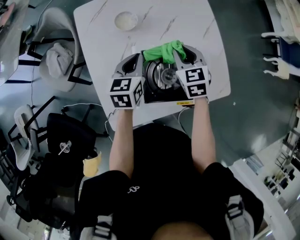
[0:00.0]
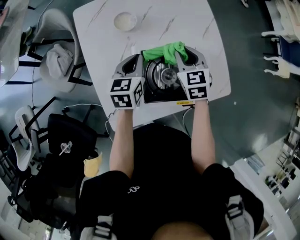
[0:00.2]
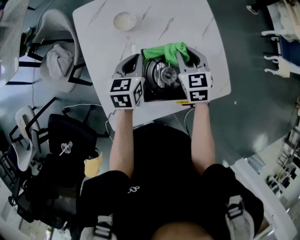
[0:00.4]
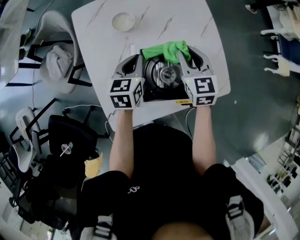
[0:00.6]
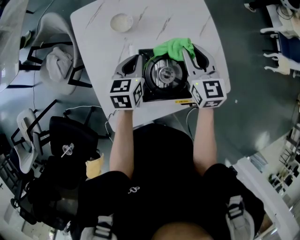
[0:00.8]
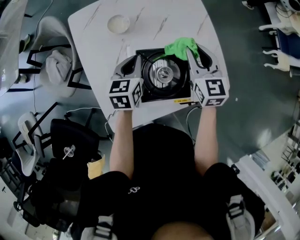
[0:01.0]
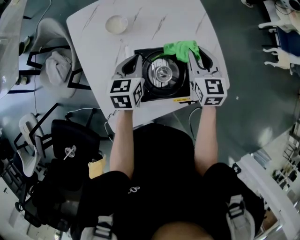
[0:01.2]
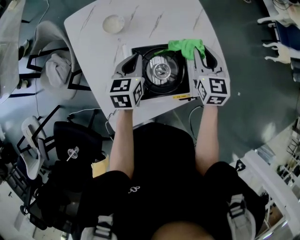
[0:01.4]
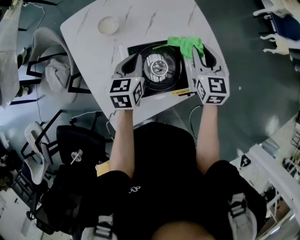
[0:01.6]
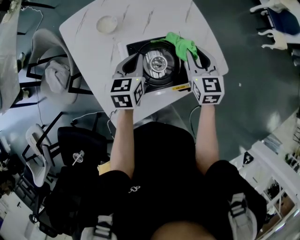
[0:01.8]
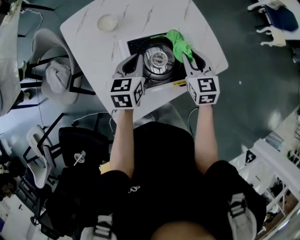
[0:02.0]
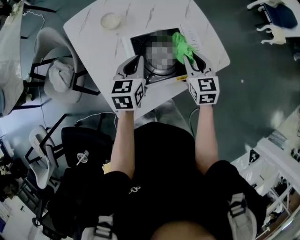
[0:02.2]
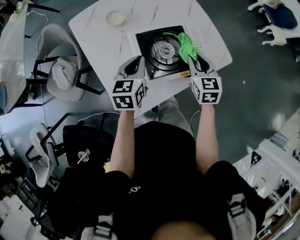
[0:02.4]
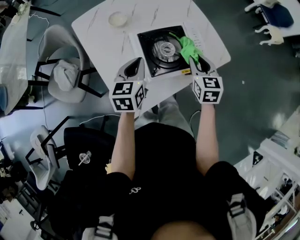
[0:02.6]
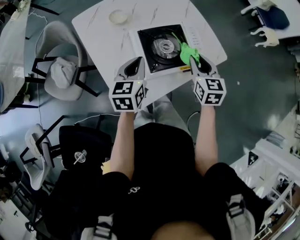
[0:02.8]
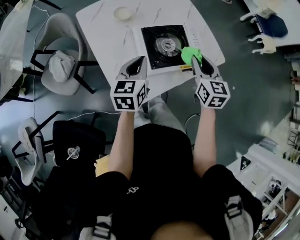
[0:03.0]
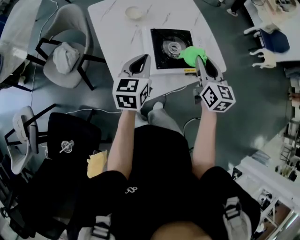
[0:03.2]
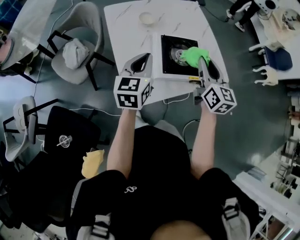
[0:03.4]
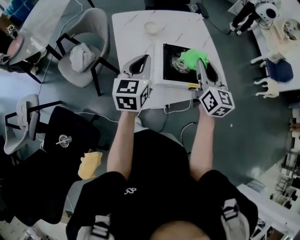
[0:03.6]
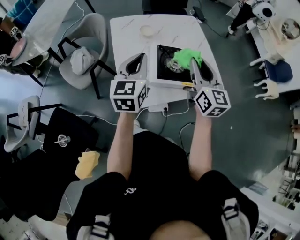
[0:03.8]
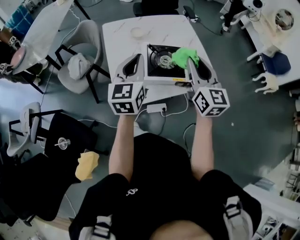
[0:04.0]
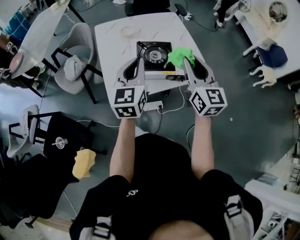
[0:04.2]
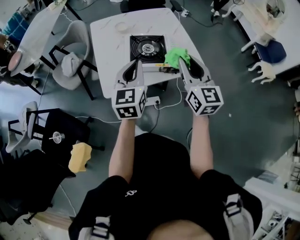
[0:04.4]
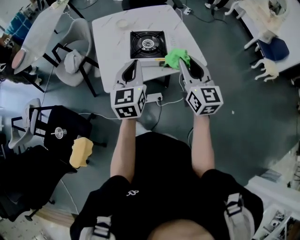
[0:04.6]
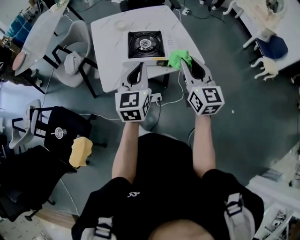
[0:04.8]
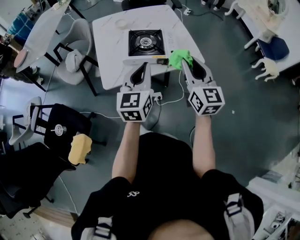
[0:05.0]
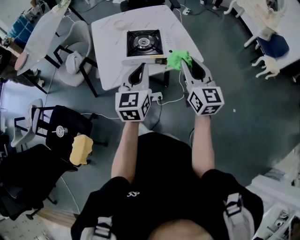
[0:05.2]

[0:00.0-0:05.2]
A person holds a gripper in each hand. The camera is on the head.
0:00.0 to 0:01.8: The right gripper moves to the right and backward, roughly 15 cm, and changes its angle by approximately 20 degrees; the left gripper travels to the right by some 5 cm.
0:01.8 to 0:03.4: Both grippers travel together backward, upward and to the left, approximately 20 cm. The right gripper swivels about 20 degrees.
0:03.4 to 0:05.2: The grippers both shift backward and to the right by approximately 30 cm.

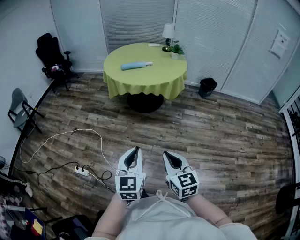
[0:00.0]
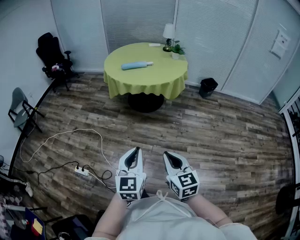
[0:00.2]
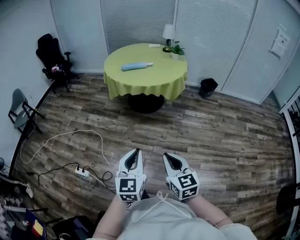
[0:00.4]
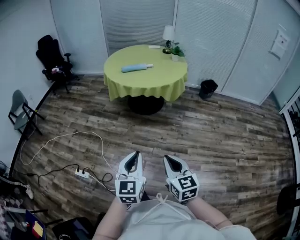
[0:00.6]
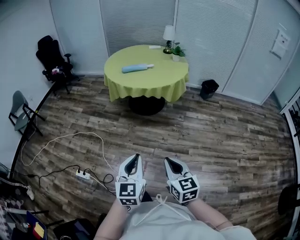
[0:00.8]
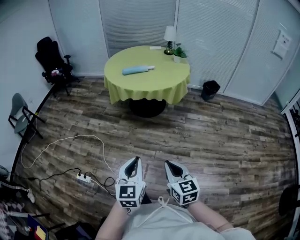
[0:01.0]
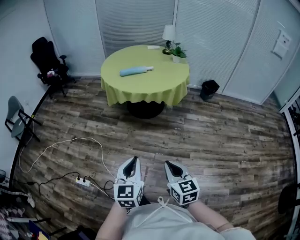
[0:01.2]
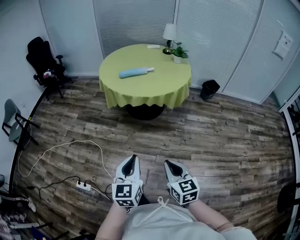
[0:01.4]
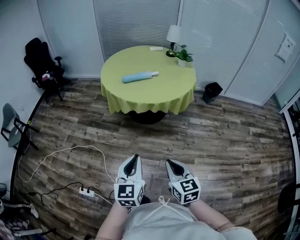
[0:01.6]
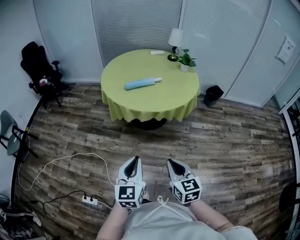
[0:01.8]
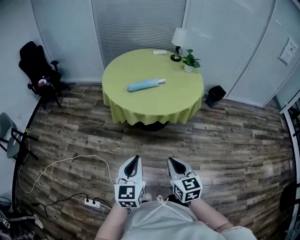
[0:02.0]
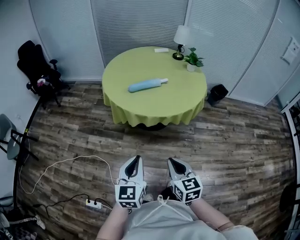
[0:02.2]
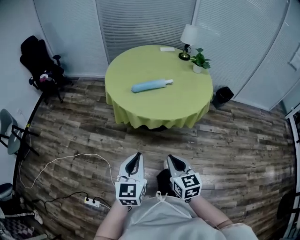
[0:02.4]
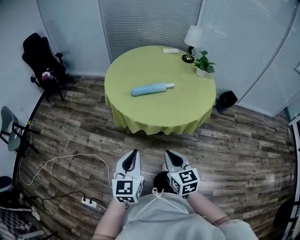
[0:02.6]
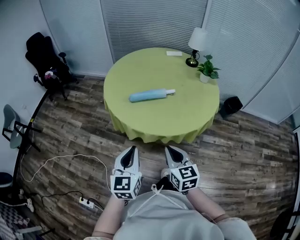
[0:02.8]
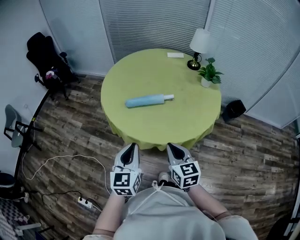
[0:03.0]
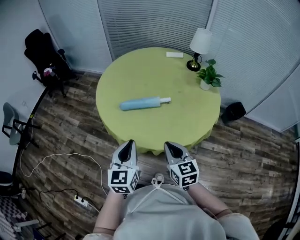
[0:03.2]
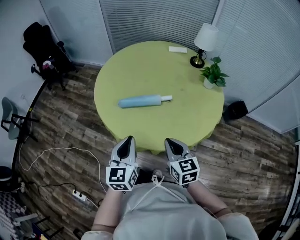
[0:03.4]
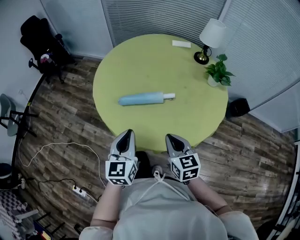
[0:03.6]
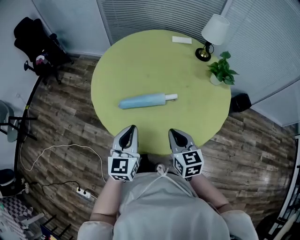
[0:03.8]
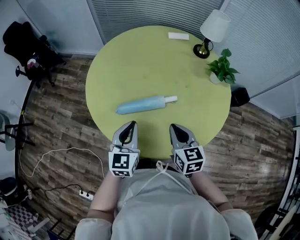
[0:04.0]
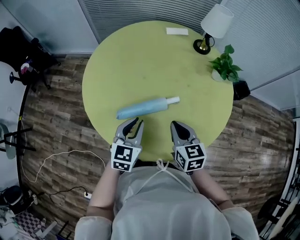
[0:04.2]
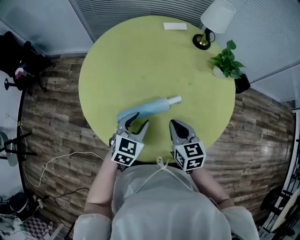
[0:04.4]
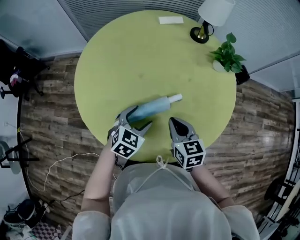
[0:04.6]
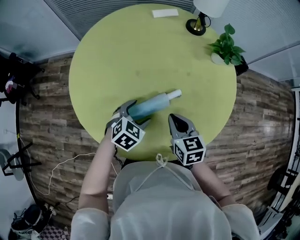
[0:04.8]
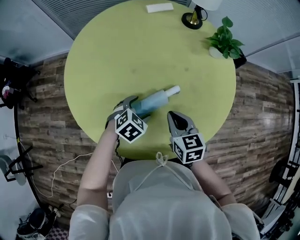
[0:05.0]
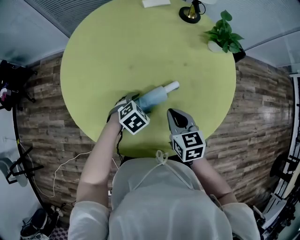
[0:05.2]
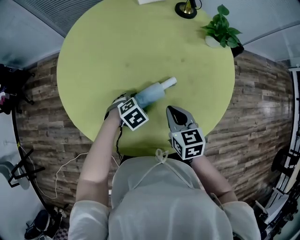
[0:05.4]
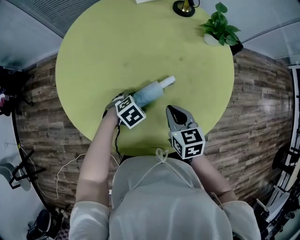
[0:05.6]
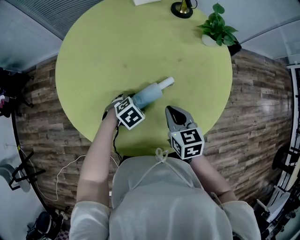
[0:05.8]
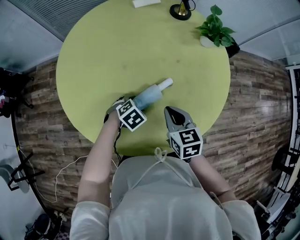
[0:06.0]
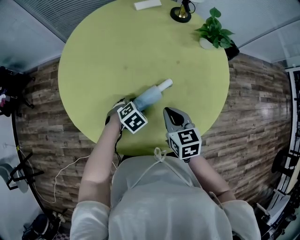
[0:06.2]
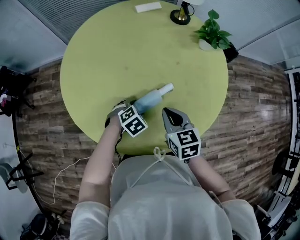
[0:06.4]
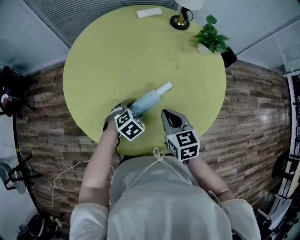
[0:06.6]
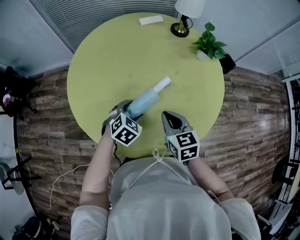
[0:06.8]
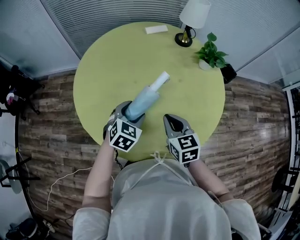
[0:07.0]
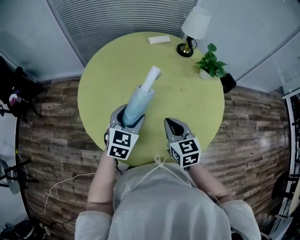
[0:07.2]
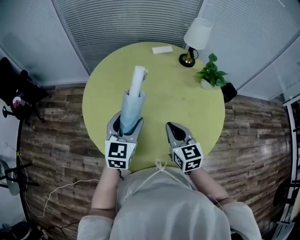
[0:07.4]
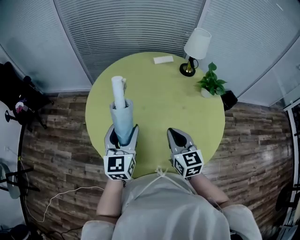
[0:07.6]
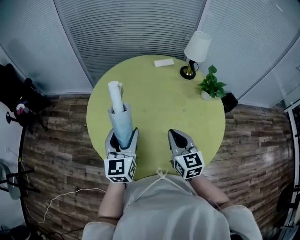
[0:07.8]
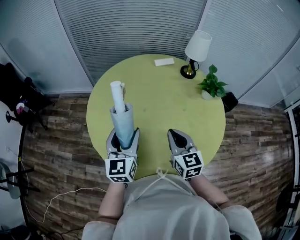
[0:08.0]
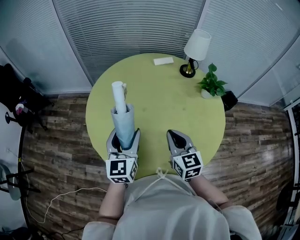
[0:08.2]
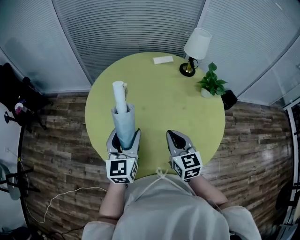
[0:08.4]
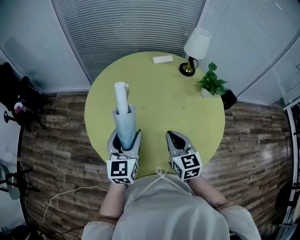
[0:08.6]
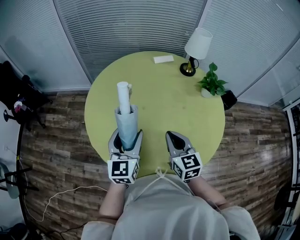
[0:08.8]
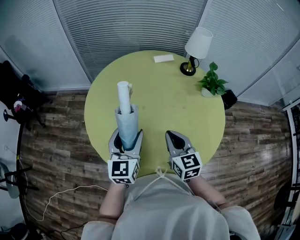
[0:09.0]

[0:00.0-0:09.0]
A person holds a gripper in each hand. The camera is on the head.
0:00.0 to 0:01.6: Both grippers move forward, approximately 25 cm.
0:01.6 to 0:03.0: Both grippers are carried forward, about 40 cm.
0:03.0 to 0:04.4: The two grippers go approximately 35 cm forward. The left gripper rotates some 40 degrees, and opens.
0:04.4 to 0:06.0: The left gripper moves downward, about 15 cm, tips its fingers downward by approximately 40 degrees, and opens. Meanwhile the right gripper travels downward by some 5 cm.
0:06.0 to 0:07.6: The left gripper is displaced upward by some 30 cm, and tips its fingers upward by some 60 degrees, while the right gripper is displaced upward by approximately 15 cm, and swivels about 20 degrees.
0:07.6 to 0:09.0: There are only small adjustments of the grippers.

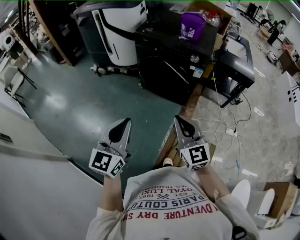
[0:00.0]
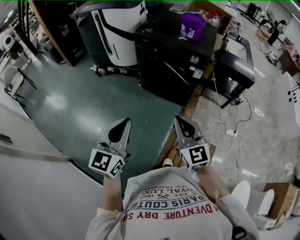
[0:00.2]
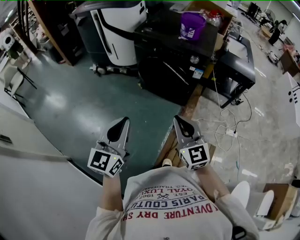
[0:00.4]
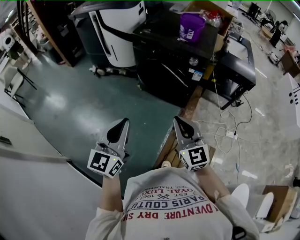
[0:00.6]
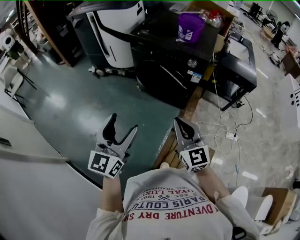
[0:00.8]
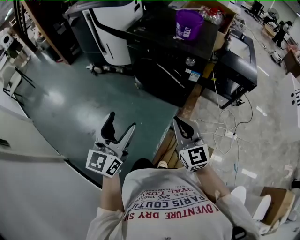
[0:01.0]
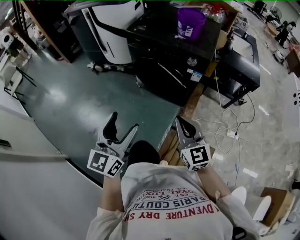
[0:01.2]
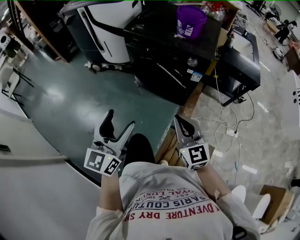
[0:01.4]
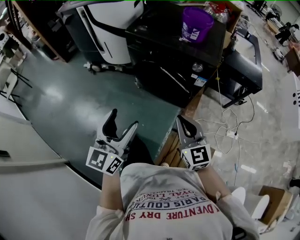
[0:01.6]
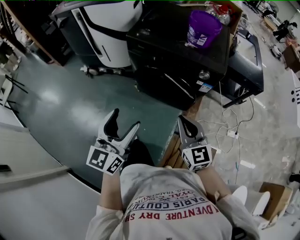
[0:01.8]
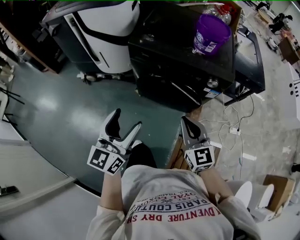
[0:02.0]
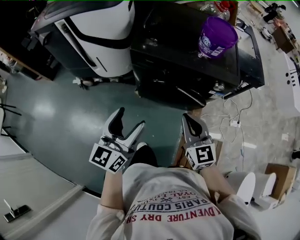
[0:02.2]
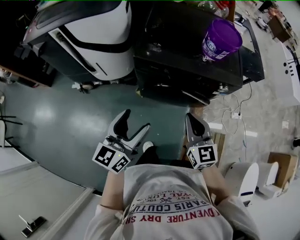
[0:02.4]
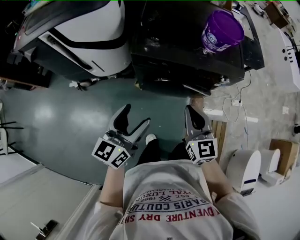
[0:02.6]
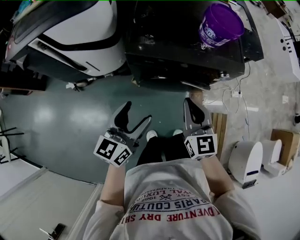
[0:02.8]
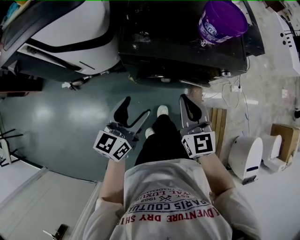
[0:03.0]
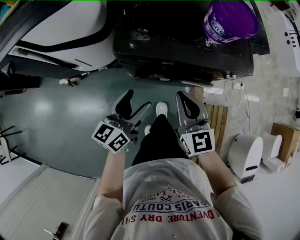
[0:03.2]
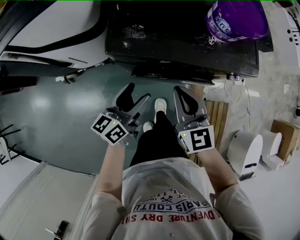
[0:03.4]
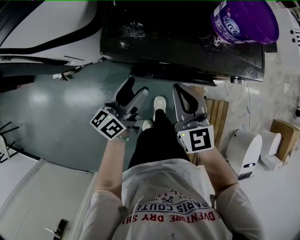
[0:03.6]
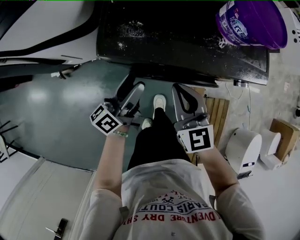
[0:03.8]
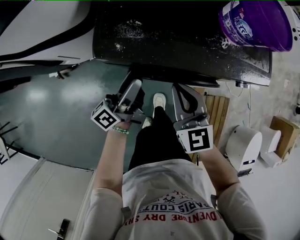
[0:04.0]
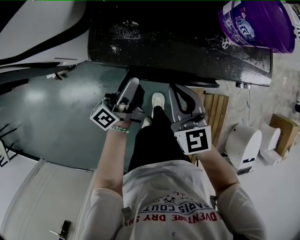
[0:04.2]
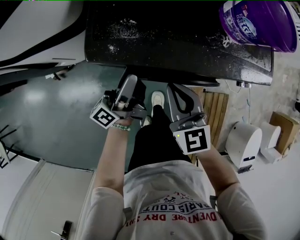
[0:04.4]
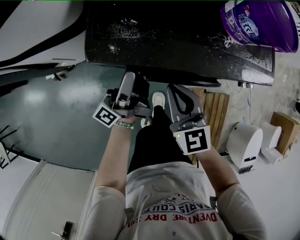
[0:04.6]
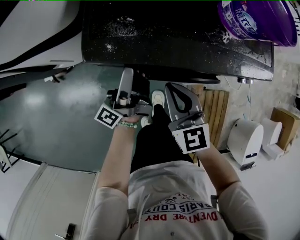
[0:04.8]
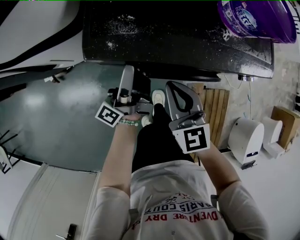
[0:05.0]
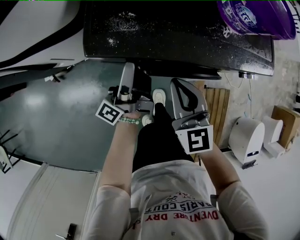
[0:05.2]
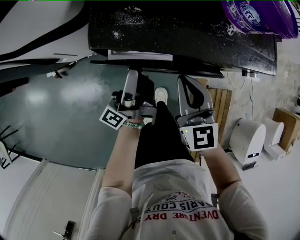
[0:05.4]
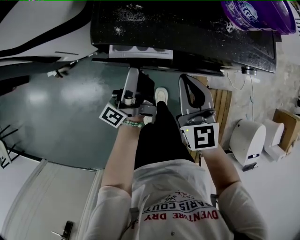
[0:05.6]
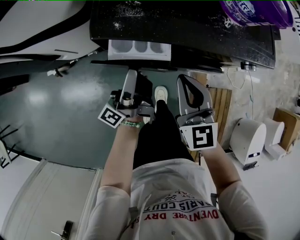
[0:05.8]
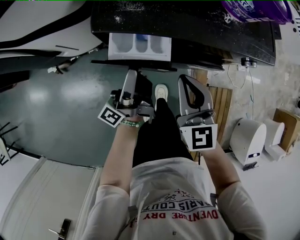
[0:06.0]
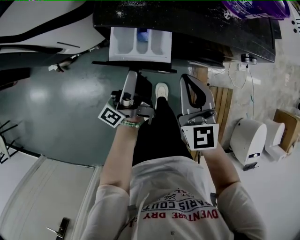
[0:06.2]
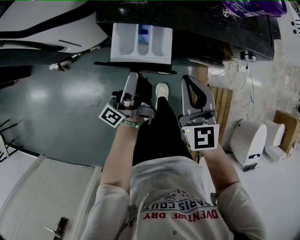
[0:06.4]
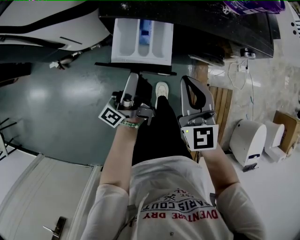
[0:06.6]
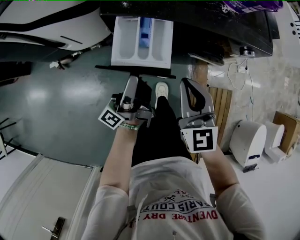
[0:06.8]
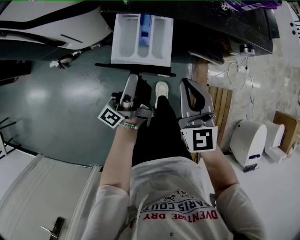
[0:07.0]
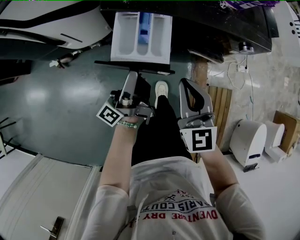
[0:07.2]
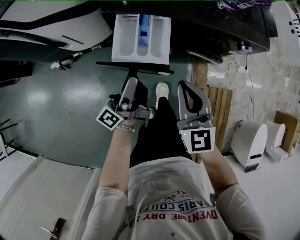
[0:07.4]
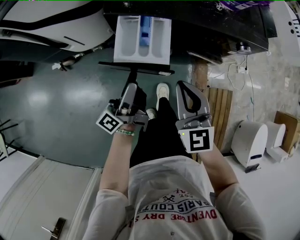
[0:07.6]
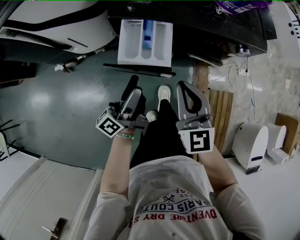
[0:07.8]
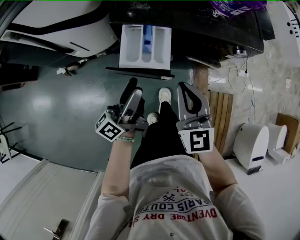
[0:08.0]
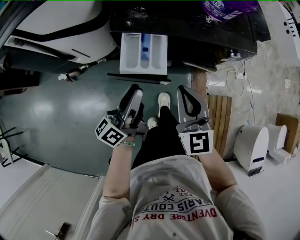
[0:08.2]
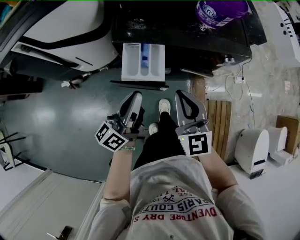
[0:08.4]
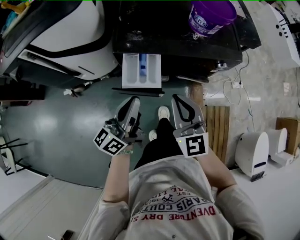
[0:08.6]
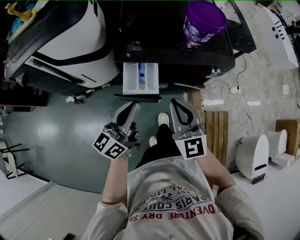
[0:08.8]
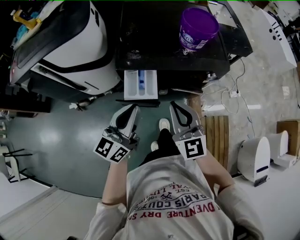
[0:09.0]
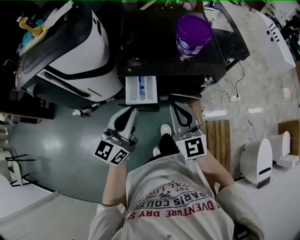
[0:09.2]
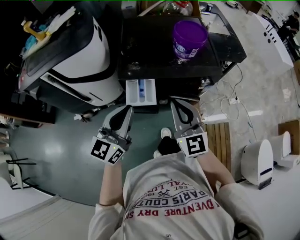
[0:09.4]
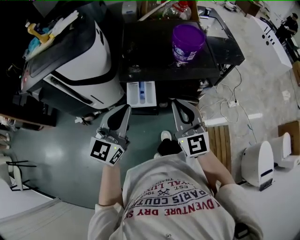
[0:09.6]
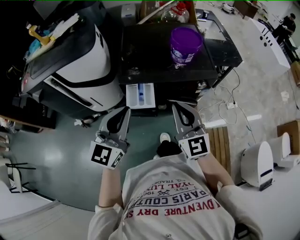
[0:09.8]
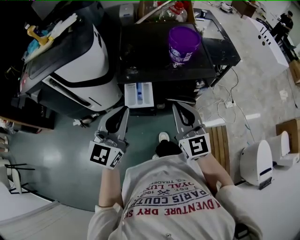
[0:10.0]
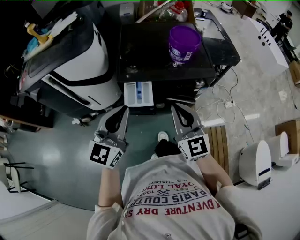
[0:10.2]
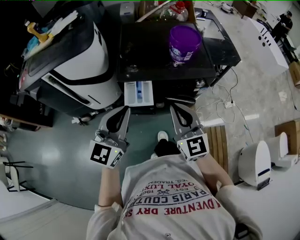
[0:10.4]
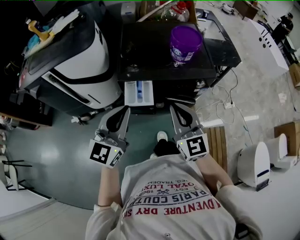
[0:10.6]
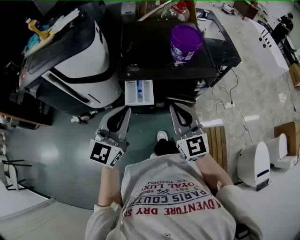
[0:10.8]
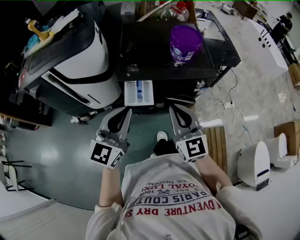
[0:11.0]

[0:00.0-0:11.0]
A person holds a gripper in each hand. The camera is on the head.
0:00.0 to 0:01.6: The grippers both shift forward by approximately 15 cm. The left gripper opens its fingers.
0:01.6 to 0:03.2: The left gripper shifts by roughly 40 cm, and swivels approximately 40 degrees; the right gripper shifts by roughly 35 cm, and swivels approximately 20 degrees.
0:03.2 to 0:04.8: The right gripper heads downward and forward, covering some 10 cm. The left gripper moves forward and downward, roughly 15 cm, and angles its fingers upward, by roughly 30 degrees.
0:04.8 to 0:06.2: The right gripper moves backward, some 5 cm. Meanwhile the left gripper goes roughly 10 cm backward.
0:06.2 to 0:07.8: The two grippers go some 10 cm backward.
0:07.8 to 0:09.4: The two grippers go roughly 20 cm upward. The left gripper rotates around the line of its fingers by roughly 60 degrees, clockwise from behind, and closes.
0:09.4 to 0:11.0: There are only small adjustments of the grippers.
